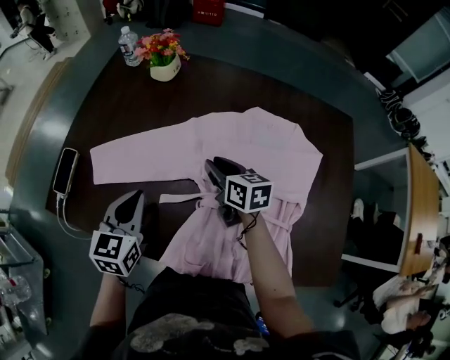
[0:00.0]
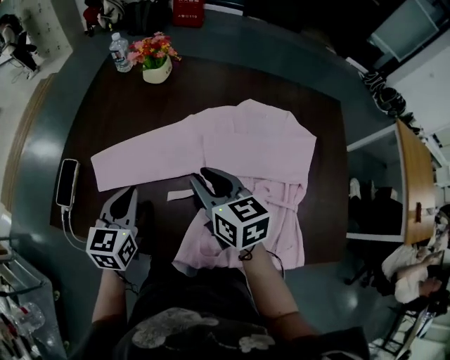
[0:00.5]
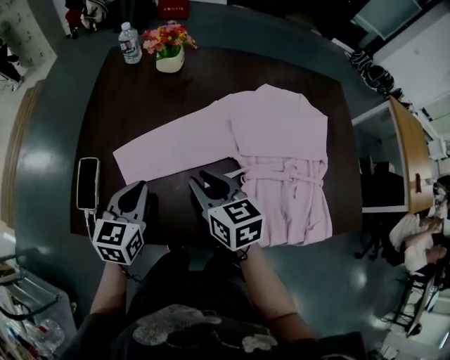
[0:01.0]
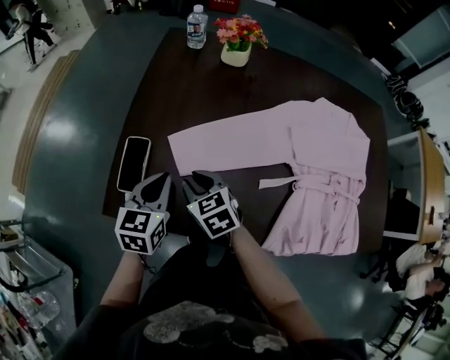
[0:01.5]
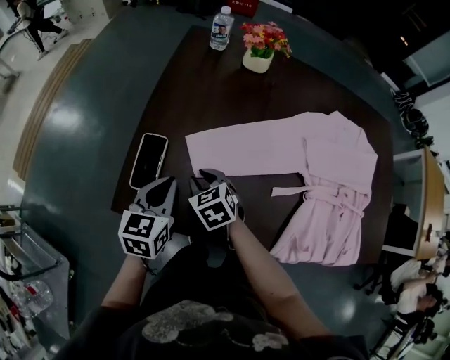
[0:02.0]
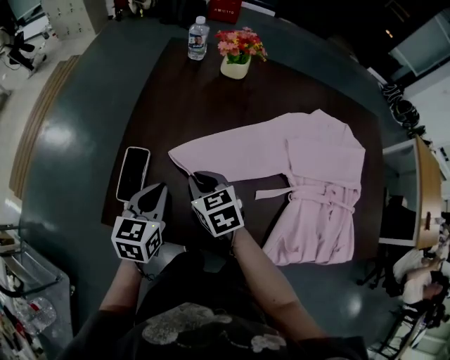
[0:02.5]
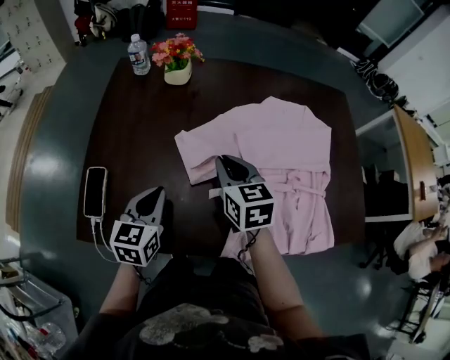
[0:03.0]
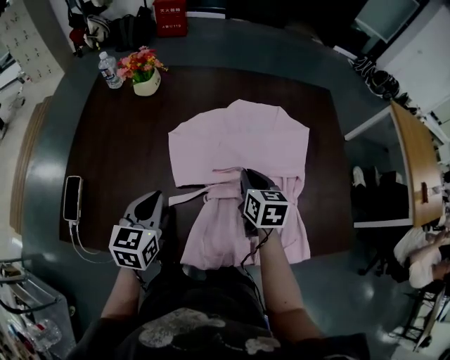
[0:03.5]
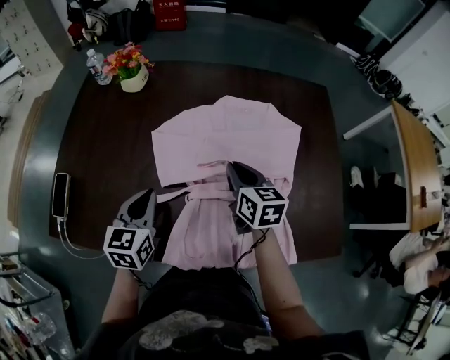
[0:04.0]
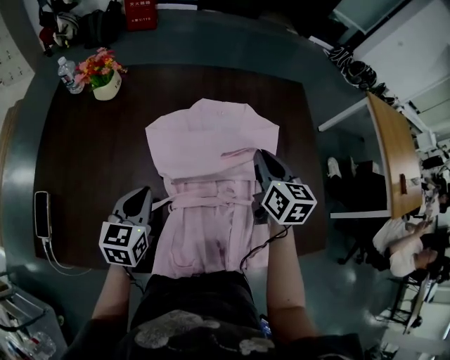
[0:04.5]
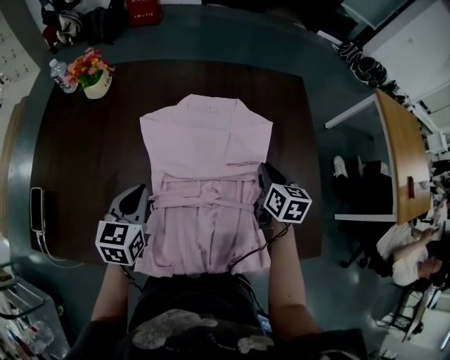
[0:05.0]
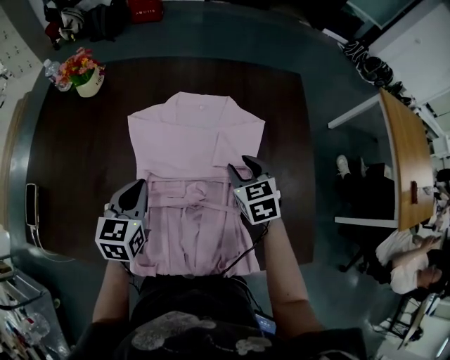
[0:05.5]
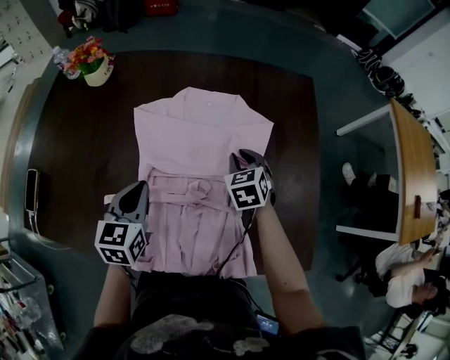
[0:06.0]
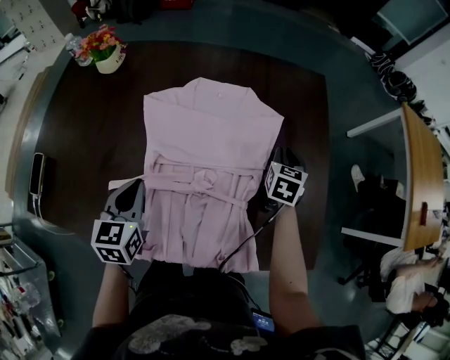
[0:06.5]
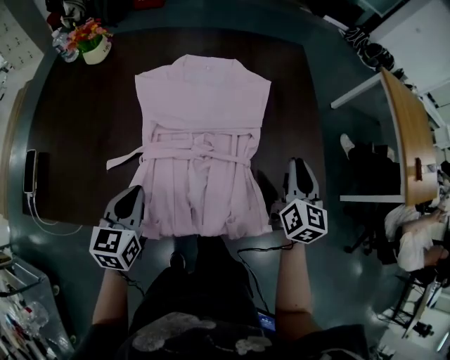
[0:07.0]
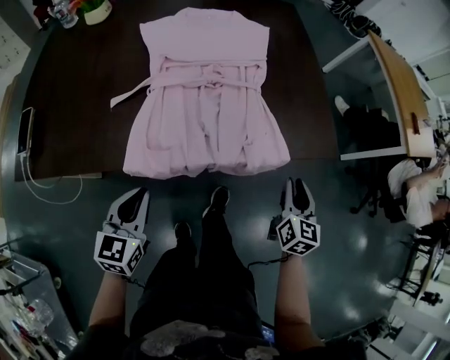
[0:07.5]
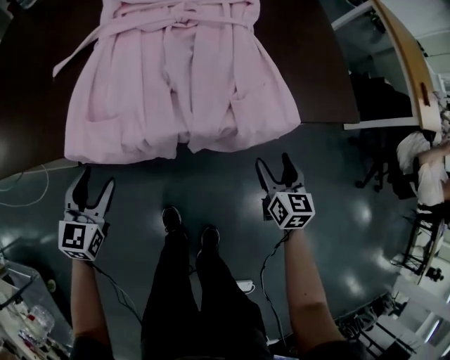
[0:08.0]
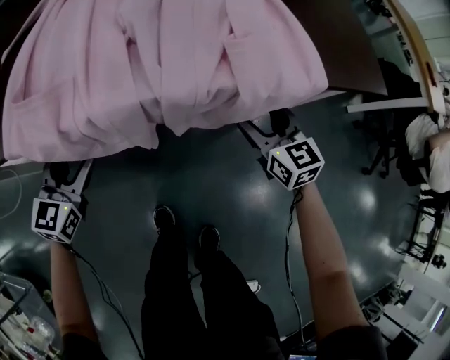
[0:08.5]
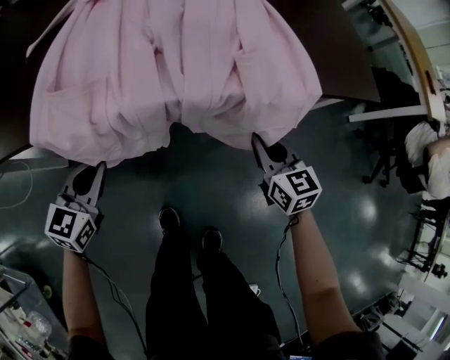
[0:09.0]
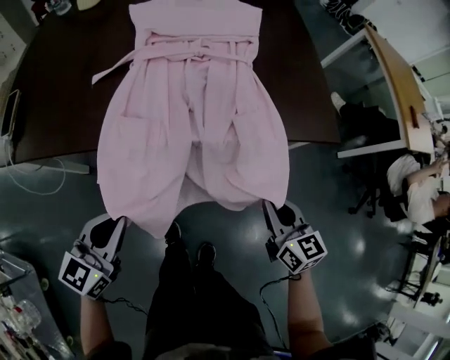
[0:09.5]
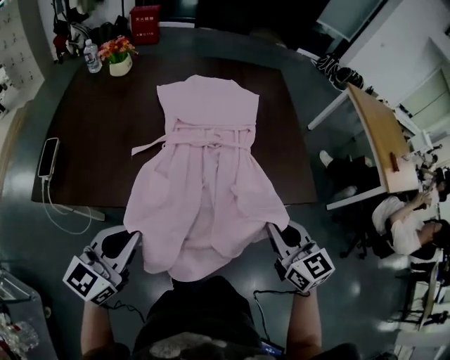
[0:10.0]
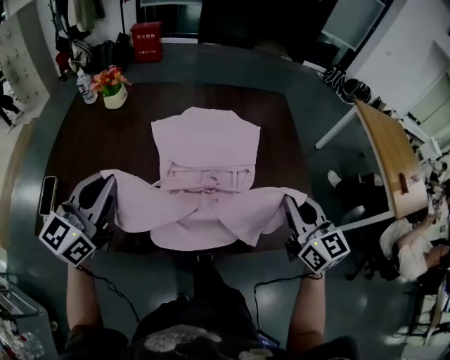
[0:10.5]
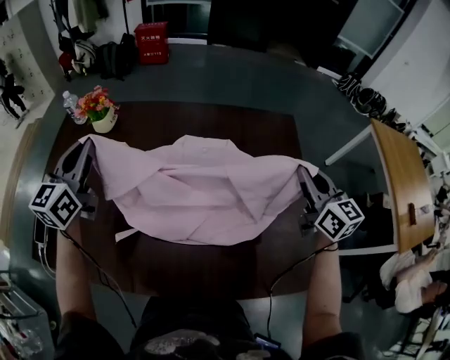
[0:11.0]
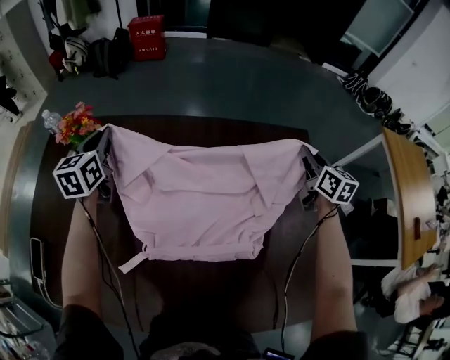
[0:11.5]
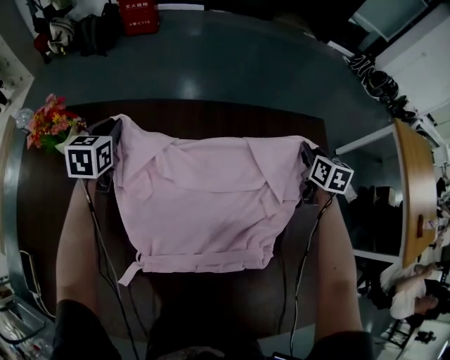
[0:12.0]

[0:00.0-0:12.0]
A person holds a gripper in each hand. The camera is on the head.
0:00.0 to 0:02.0: The grippers both shift to the left by roughly 35 cm. The right gripper rotates roughly 40 degrees.
0:02.0 to 0:04.0: The grippers both shift to the right by about 40 cm. The right gripper turns by roughly 40 degrees.
0:04.0 to 0:06.0: The left gripper heads to the right, covering some 15 cm, while the right gripper goes approximately 20 cm to the right, downward and forward, and rotates approximately 40 degrees.
0:06.0 to 0:08.0: The right gripper moves backward, to the right and downward, about 50 cm, turns by roughly 40 degrees, and opens up. Meanwhile the left gripper travels backward and downward by about 40 cm, and opens.
0:08.0 to 0:10.0: The grippers both shift upward by approximately 30 cm. The left gripper rotates about 30 degrees, and closes. Meanwhile the right gripper swivels roughly 30 degrees, and closes.
0:10.0 to 0:12.0: Both grippers are carried forward, some 80 cm. The right gripper rotates roughly 30 degrees; the left gripper changes its angle by roughly 40 degrees.

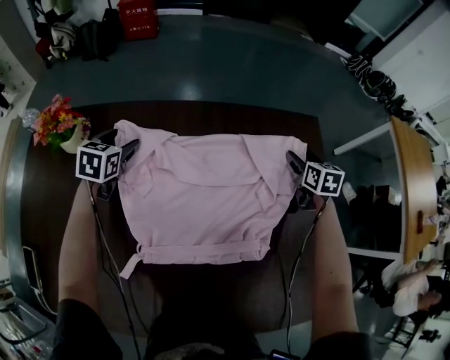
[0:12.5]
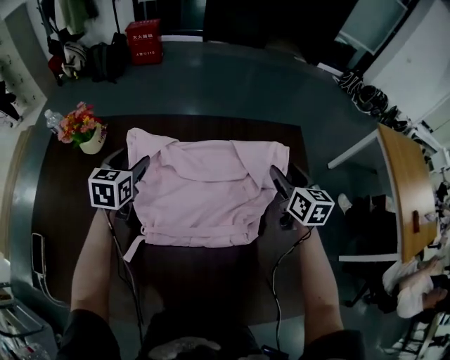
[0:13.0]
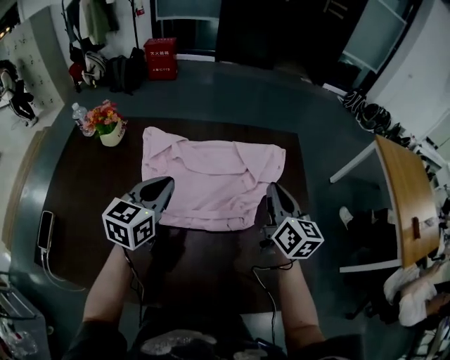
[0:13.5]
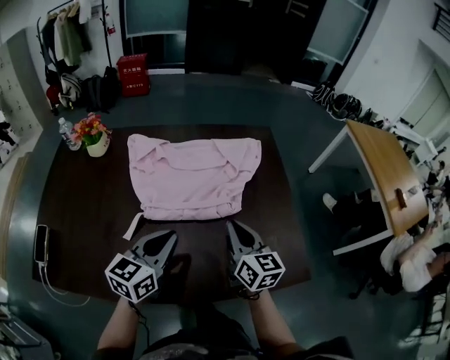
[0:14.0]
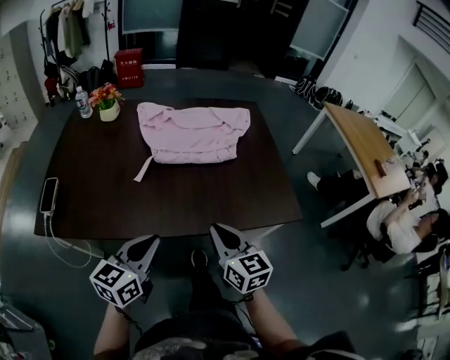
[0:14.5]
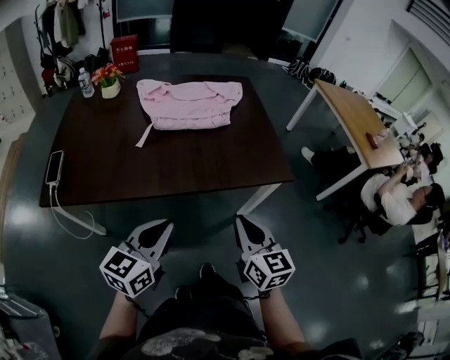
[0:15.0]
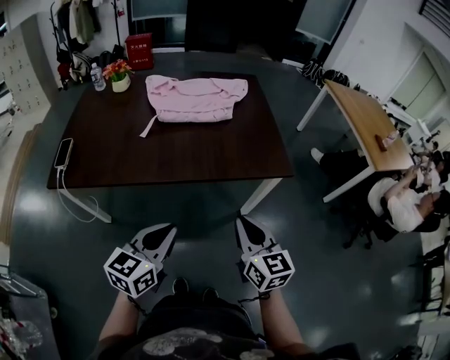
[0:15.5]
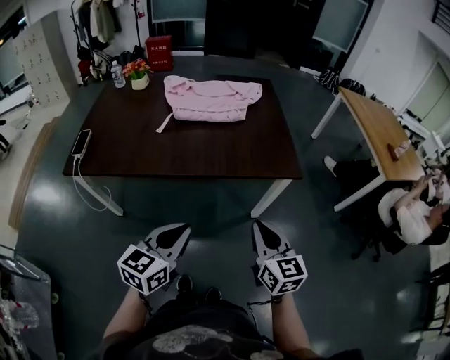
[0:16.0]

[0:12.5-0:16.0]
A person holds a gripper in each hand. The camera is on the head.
0:12.5 to 0:14.5: Both grippers are carried backward, roughly 70 cm. The right gripper rotates roughly 30 degrees, and closes up. The left gripper angles its fingers upward, by some 30 degrees, and closes its fingers.
0:14.5 to 0:16.0: The two grippers go roughly 25 cm backward and to the right.

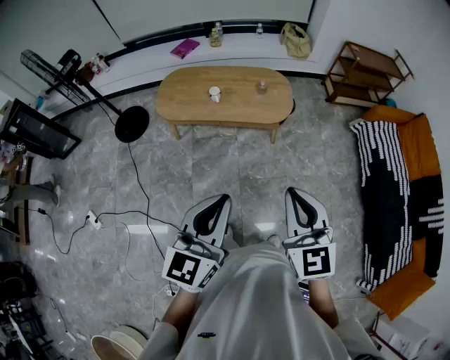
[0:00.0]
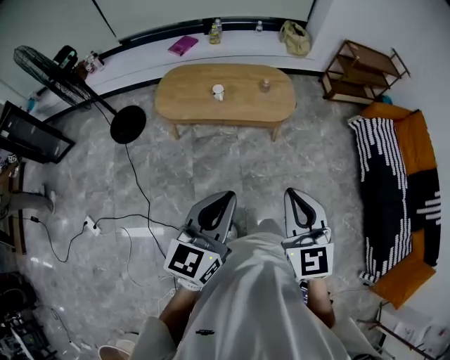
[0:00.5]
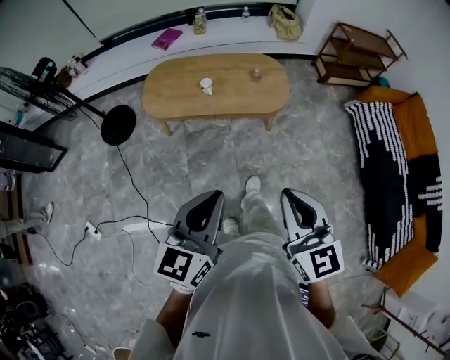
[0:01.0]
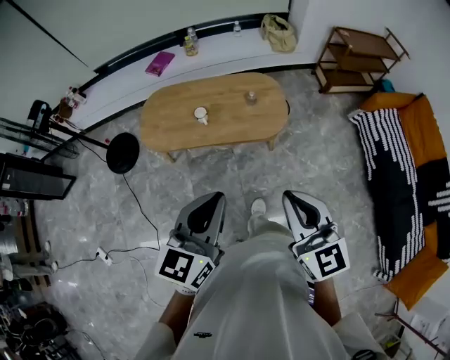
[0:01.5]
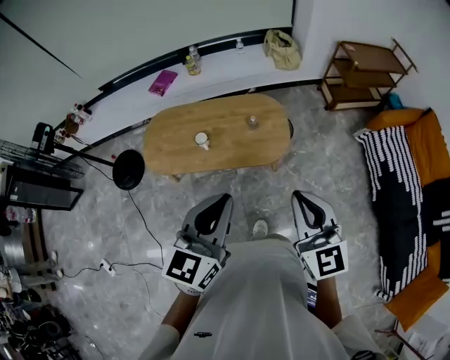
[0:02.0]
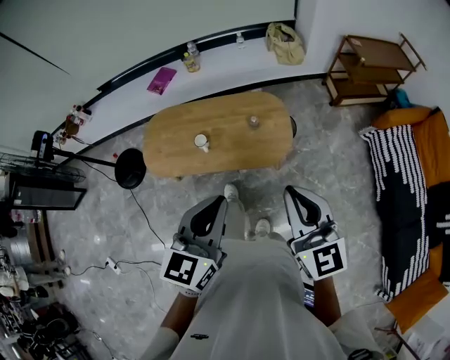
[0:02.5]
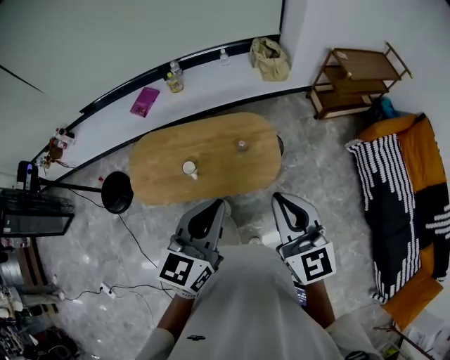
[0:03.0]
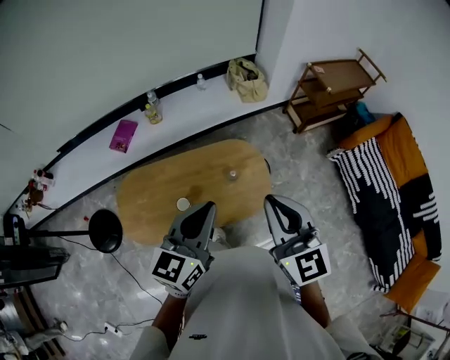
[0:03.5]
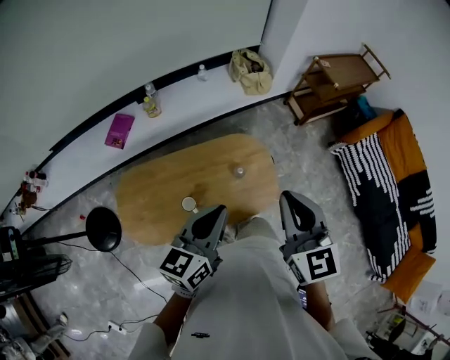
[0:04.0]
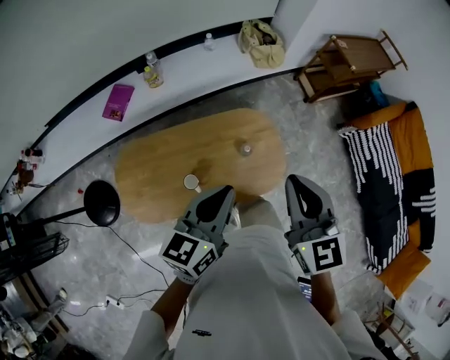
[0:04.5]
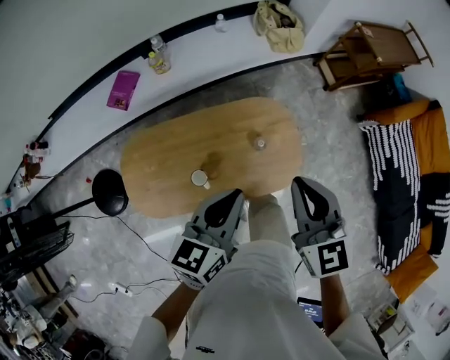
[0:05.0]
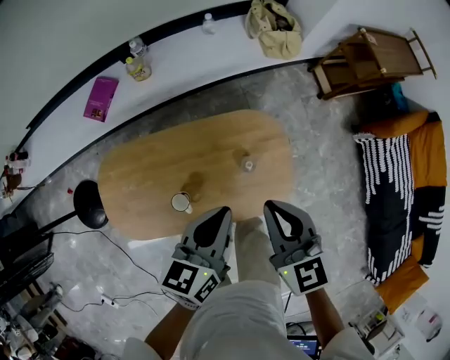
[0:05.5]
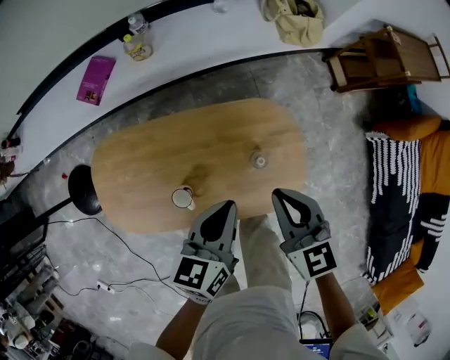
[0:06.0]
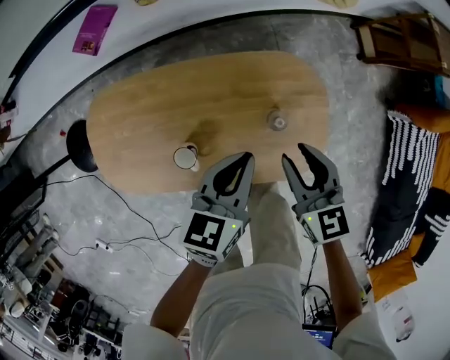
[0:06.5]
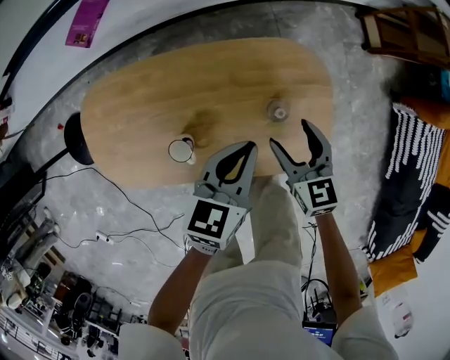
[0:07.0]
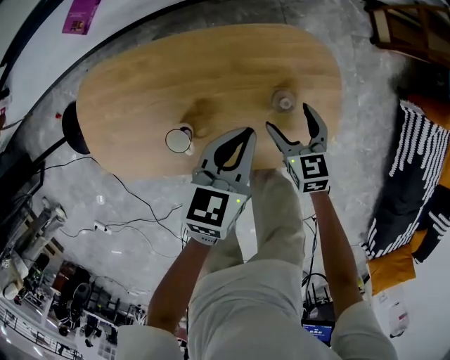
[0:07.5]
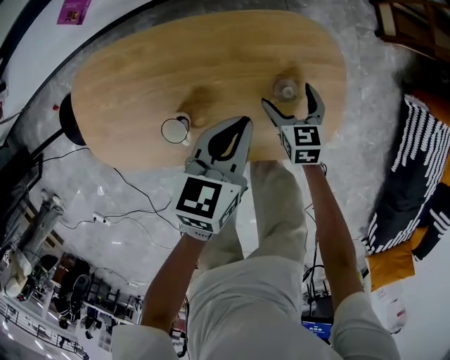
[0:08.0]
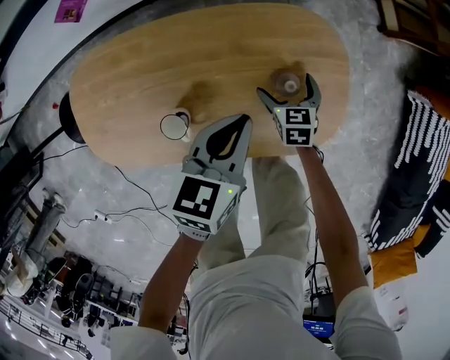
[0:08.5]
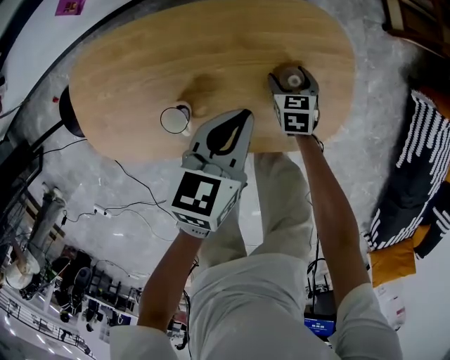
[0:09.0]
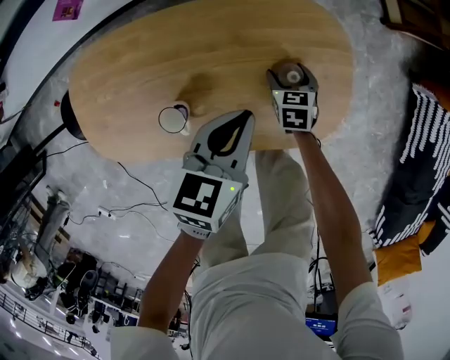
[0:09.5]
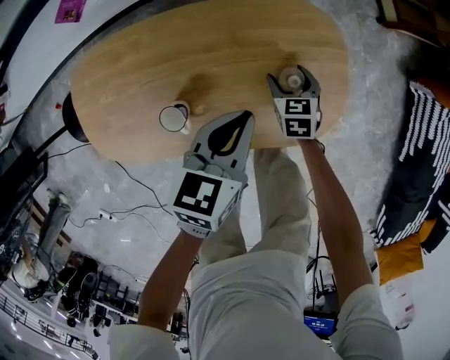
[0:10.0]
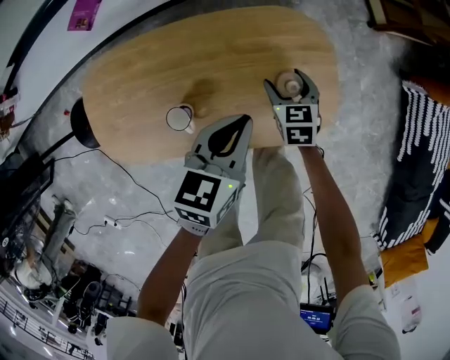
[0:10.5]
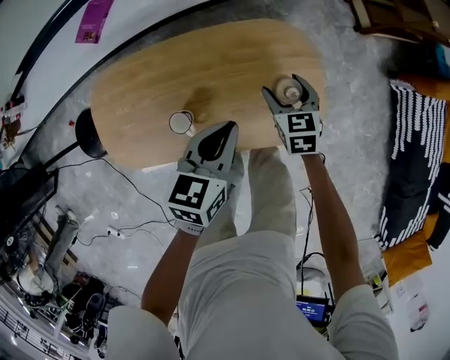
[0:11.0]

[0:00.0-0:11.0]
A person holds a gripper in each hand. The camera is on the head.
0:00.0 to 0:02.0: Both grippers travel together forward, about 30 cm.
0:02.0 to 0:03.5: The left gripper is displaced forward by about 30 cm. The right gripper shifts roughly 25 cm forward and to the left.
0:03.5 to 0:05.5: The two grippers go roughly 25 cm downward and forward. The left gripper turns by approximately 20 degrees.
0:05.5 to 0:07.5: The right gripper moves downward, some 35 cm, and opens its fingers; the left gripper goes roughly 20 cm downward.
0:07.5 to 0:09.0: The right gripper is displaced downward by approximately 10 cm.
0:09.0 to 0:11.0: The left gripper moves upward, some 10 cm. Meanwhile the right gripper moves upward, about 20 cm.
